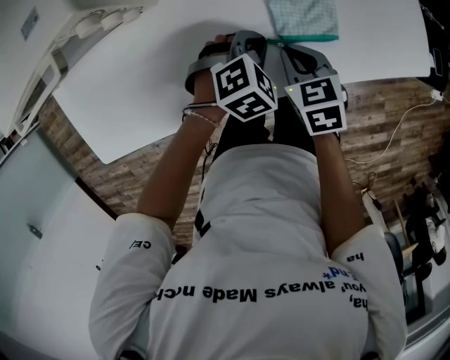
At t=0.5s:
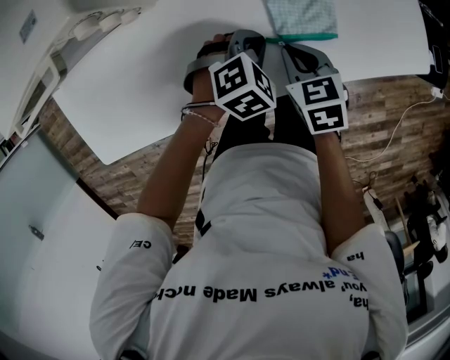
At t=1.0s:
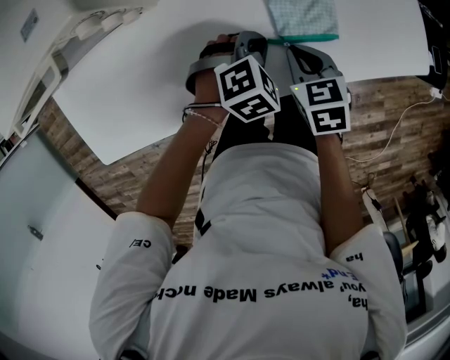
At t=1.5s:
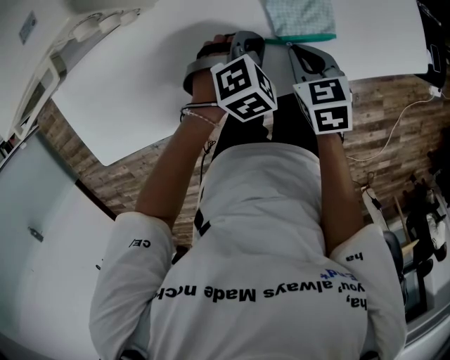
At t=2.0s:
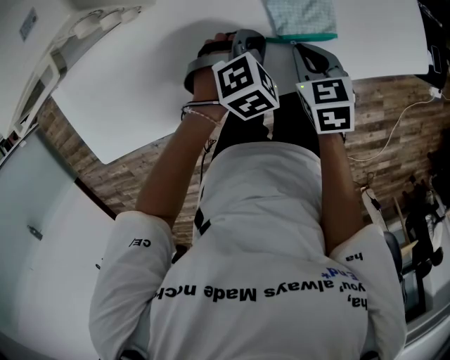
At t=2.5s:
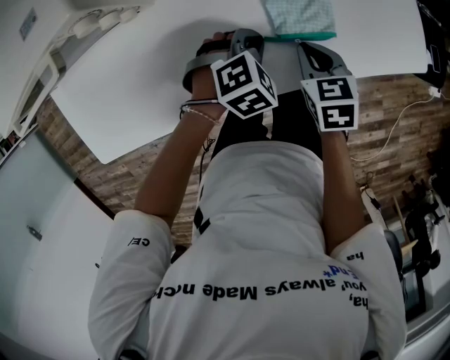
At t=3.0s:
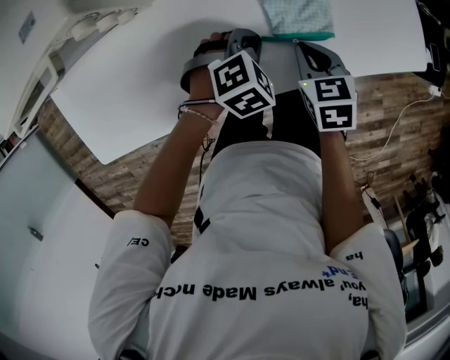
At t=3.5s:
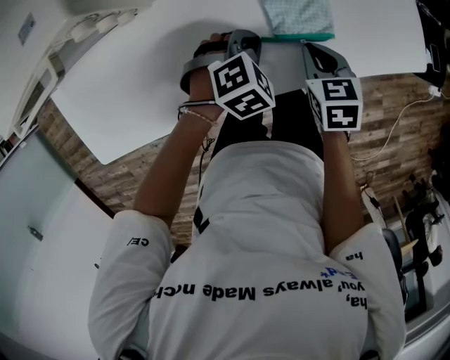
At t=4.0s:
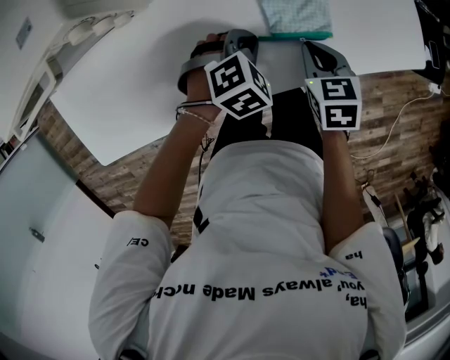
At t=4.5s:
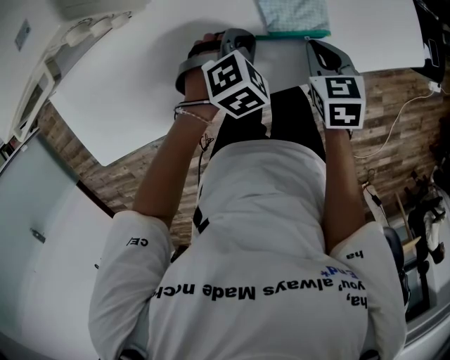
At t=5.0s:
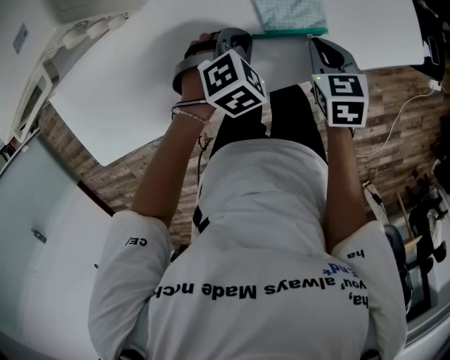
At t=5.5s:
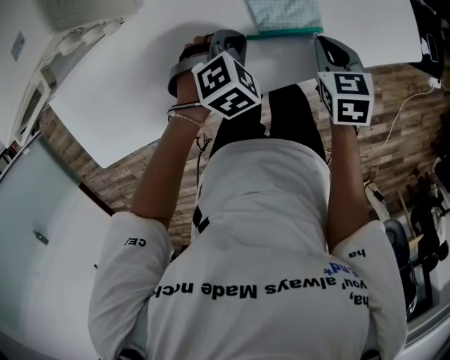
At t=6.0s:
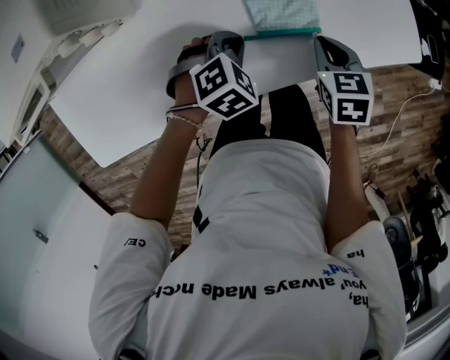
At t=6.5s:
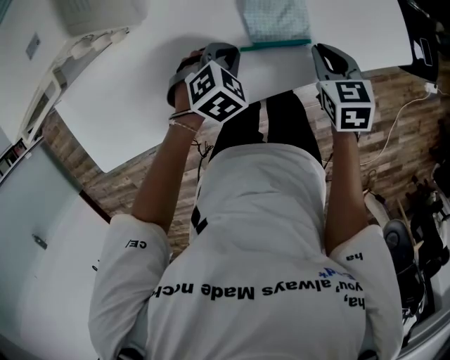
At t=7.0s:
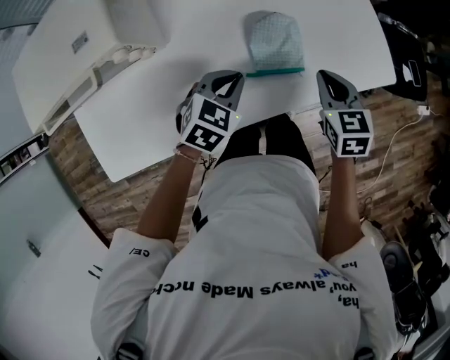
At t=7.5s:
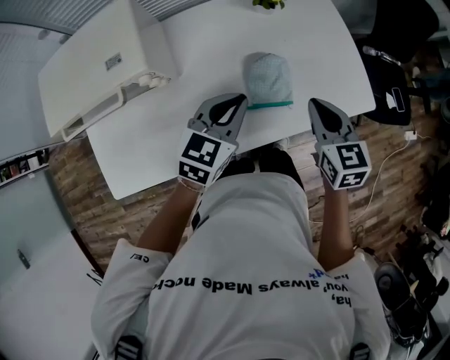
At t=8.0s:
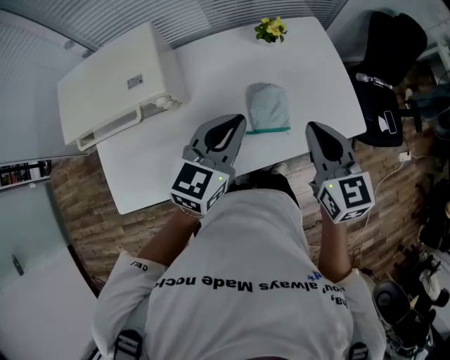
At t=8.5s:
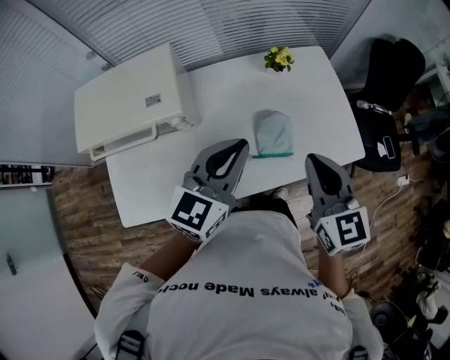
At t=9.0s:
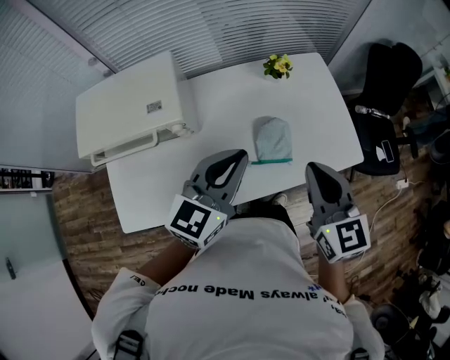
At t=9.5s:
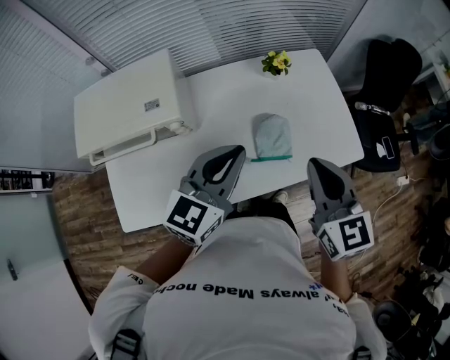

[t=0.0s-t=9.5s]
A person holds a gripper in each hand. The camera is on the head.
t=0.0s to t=2.0s: There are only small adjustments of the grippers.
t=2.0s to t=4.0s: There are only small adjustments of the grippers.
t=4.0s to t=5.5s: The right gripper travels to the right by about 5 cm.
t=5.5s to t=7.5s: The grippers both shift upward by about 20 cm. The left gripper tips its fingers upward by some 40 degrees. Meanwhile the right gripper turns by approximately 20 degrees.
t=7.5s to t=9.5s: The grippers both shift upward by some 15 cm.

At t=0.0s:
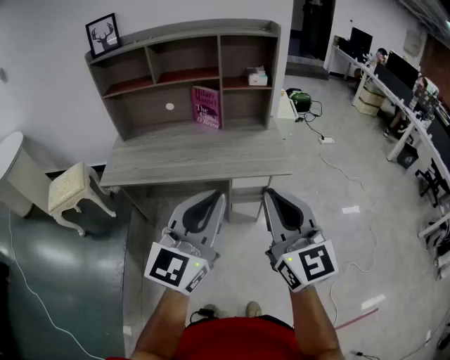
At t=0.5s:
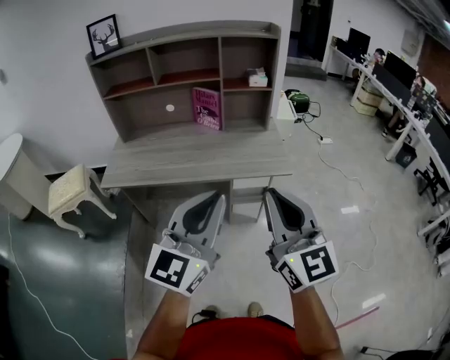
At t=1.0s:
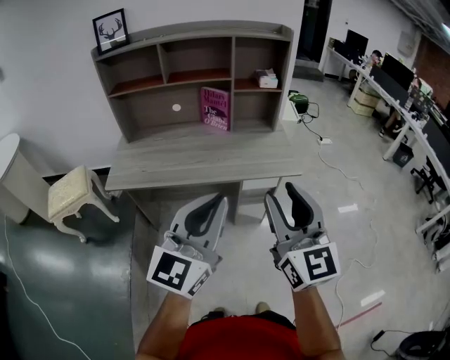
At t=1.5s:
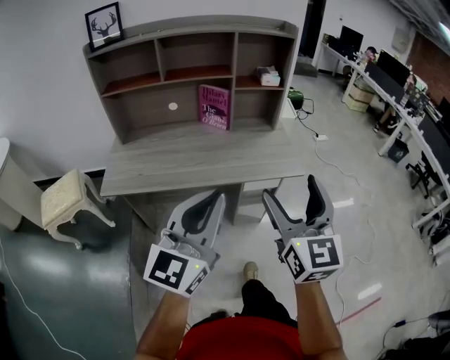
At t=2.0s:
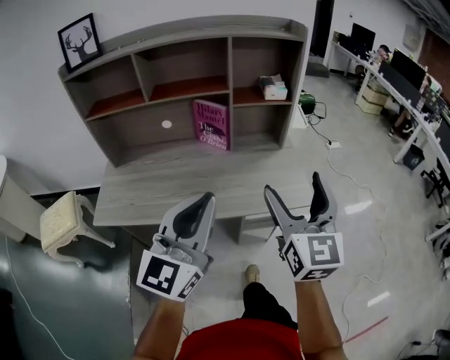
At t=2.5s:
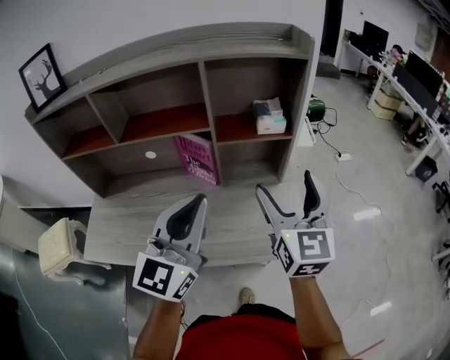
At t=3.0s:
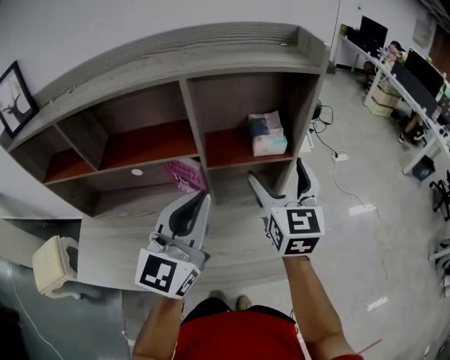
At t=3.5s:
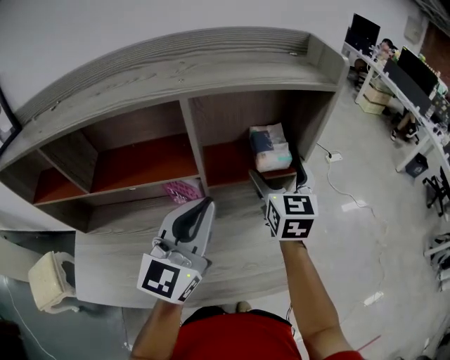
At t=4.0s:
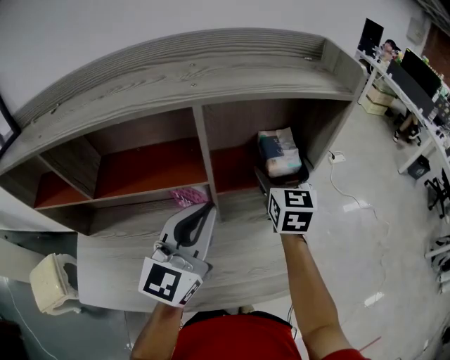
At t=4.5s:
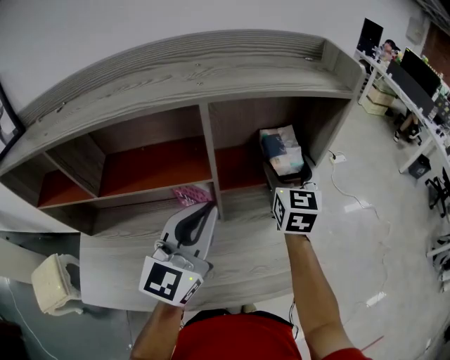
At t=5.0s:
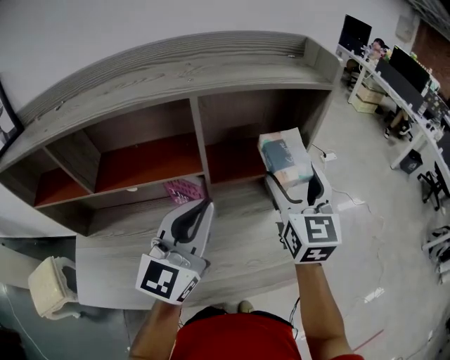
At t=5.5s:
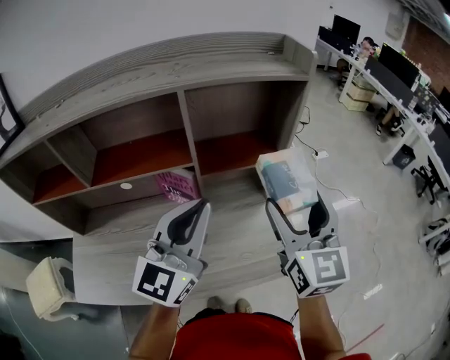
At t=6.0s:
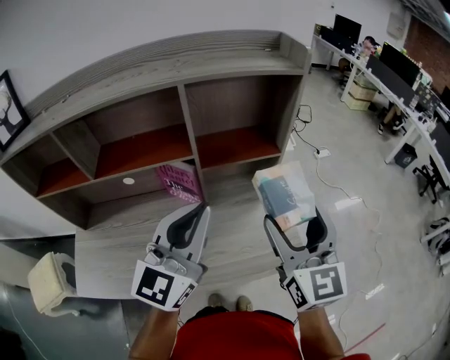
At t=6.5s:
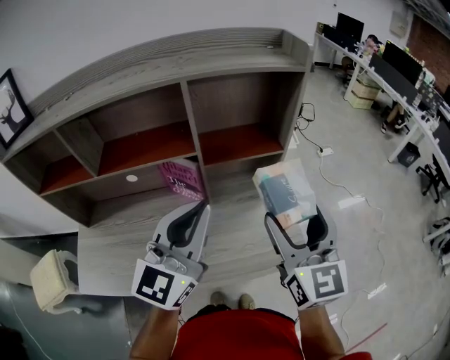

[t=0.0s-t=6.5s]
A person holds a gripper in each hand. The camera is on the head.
t=0.0s to t=2.0s: The left gripper heads forward and to the left, covering approximately 20 cm, while the right gripper moves forward, some 25 cm, and opens up.
t=2.0s to t=4.5s: The two grippers go some 40 cm forward.
t=4.5s to t=6.5s: The left gripper shifts roughly 10 cm backward, while the right gripper goes some 25 cm backward.

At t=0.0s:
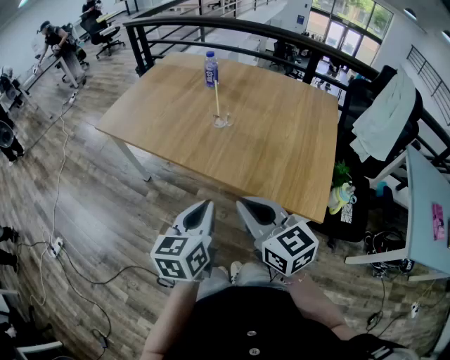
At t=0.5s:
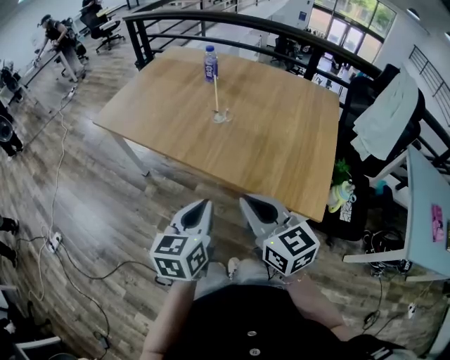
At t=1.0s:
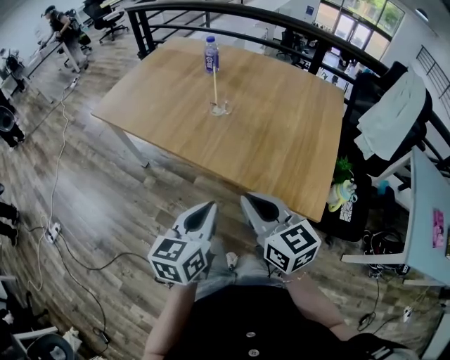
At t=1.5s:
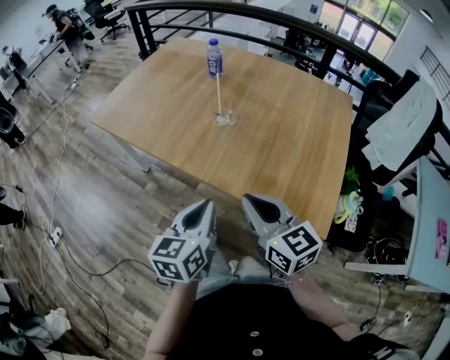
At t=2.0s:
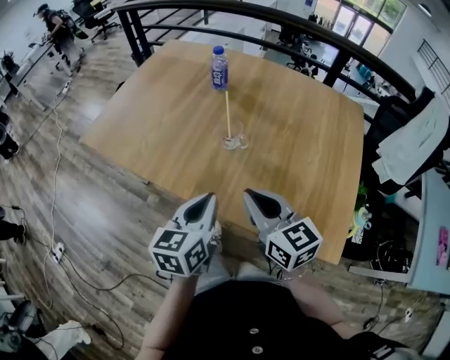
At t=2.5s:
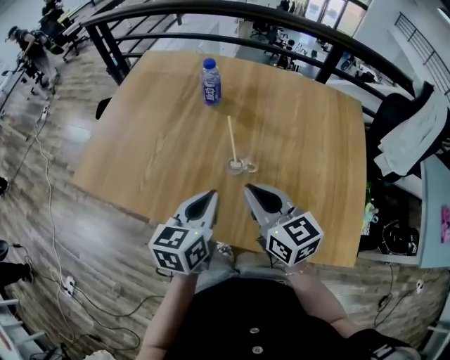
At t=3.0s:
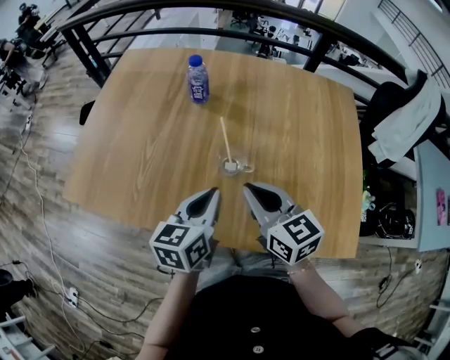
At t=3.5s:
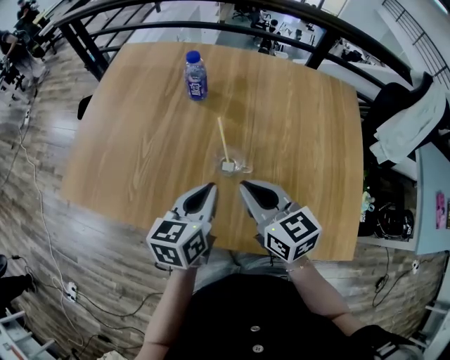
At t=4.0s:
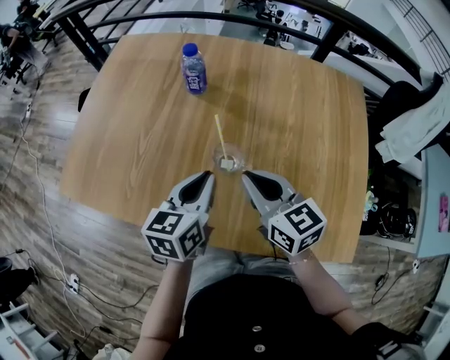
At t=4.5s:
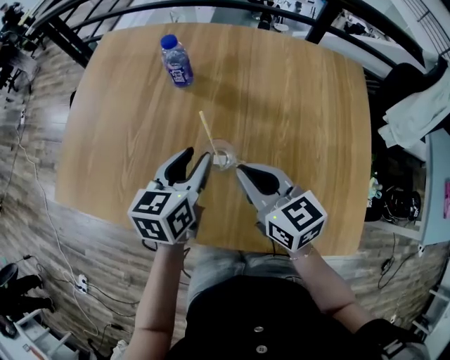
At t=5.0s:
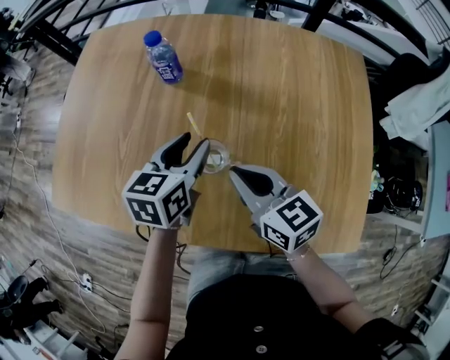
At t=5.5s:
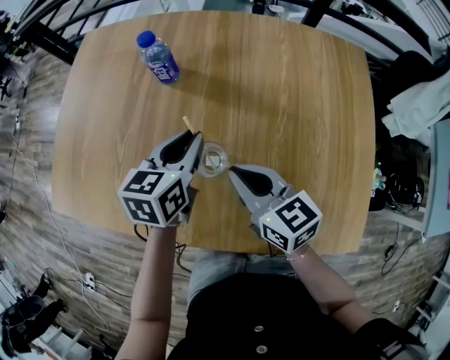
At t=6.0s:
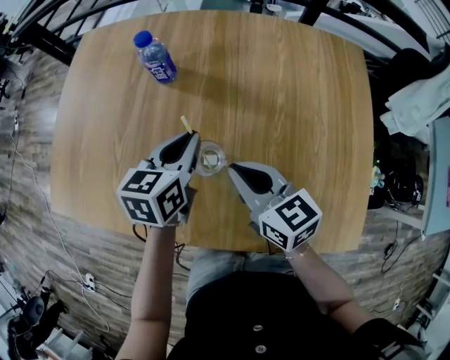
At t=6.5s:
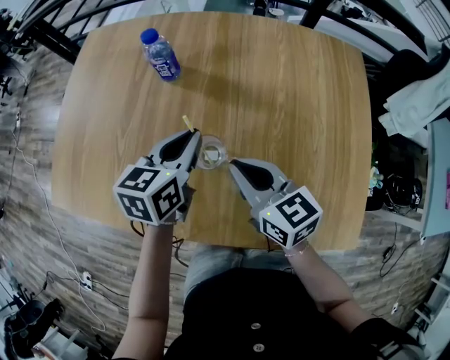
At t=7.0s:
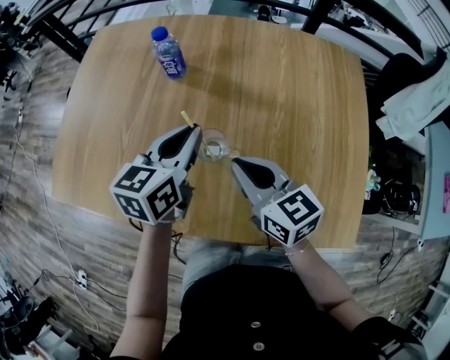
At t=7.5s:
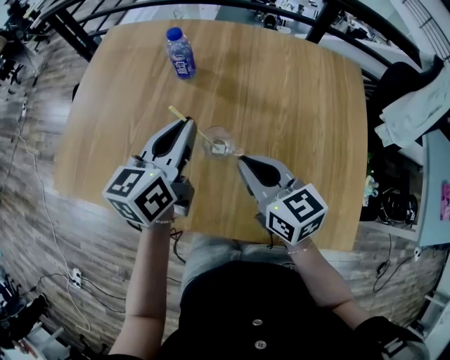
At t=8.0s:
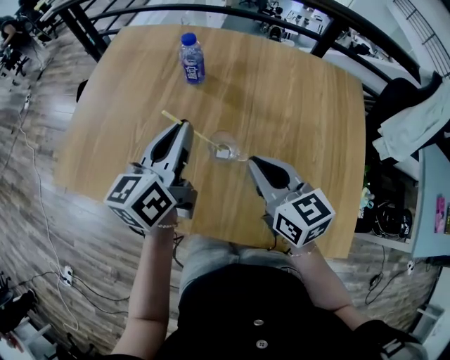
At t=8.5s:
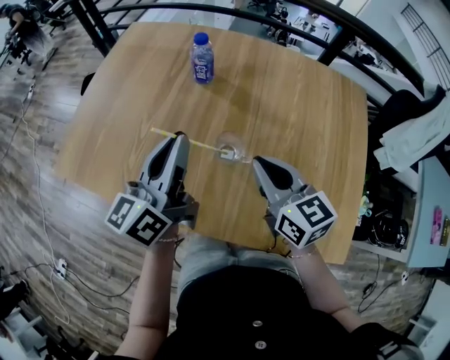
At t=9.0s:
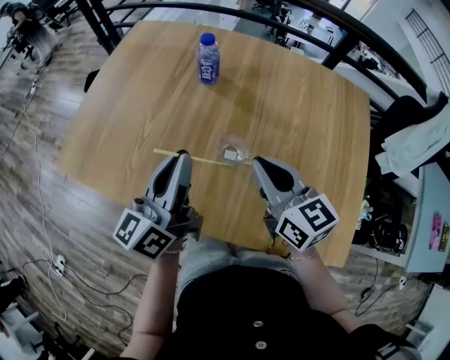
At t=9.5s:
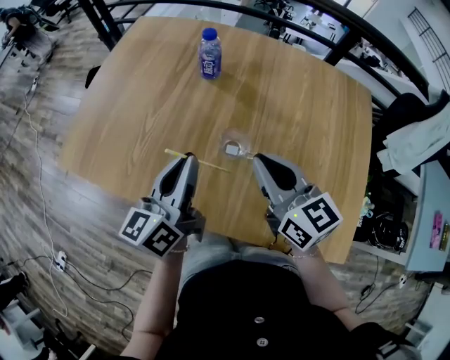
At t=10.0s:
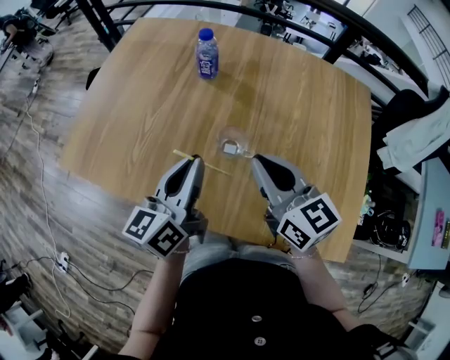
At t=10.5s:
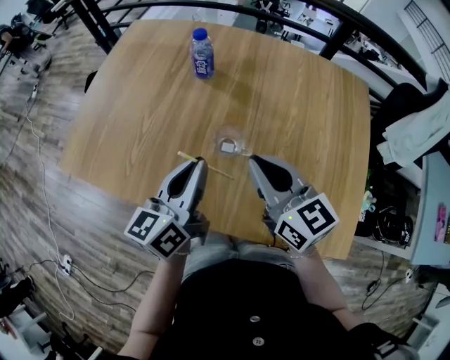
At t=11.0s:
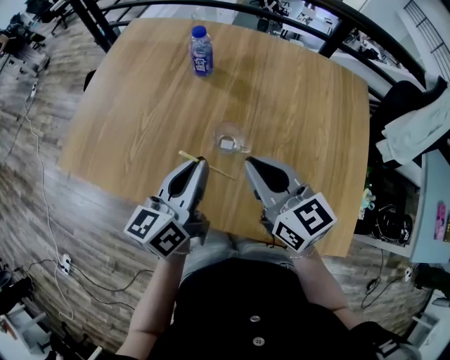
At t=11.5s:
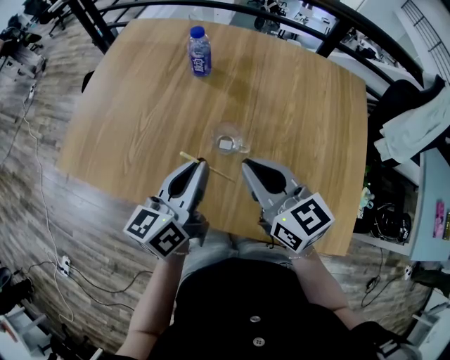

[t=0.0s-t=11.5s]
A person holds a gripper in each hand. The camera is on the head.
t=0.0s to t=2.0s: The two grippers go approximately 20 cm forward.
t=2.0s to t=4.0s: The grippers both shift forward by some 20 cm.
t=4.0s to t=6.0s: The left gripper is displaced forward by about 10 cm, and opens and closes again. Meanwhile the right gripper changes place by some 5 cm.
t=6.0s to t=7.5s: The right gripper moves about 5 cm, while the left gripper is displaced upward by some 10 cm, and swivels roughly 20 degrees.
t=7.5s to t=9.5s: The right gripper shifts about 5 cm upward. Meanwhile the left gripper goes roughly 10 cm backward and to the left, and changes its angle by approximately 20 degrees.
t=9.5s to t=11.5s: The left gripper moves approximately 5 cm.
